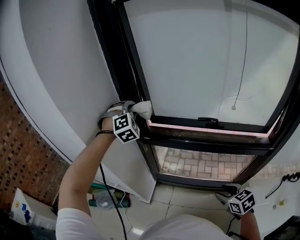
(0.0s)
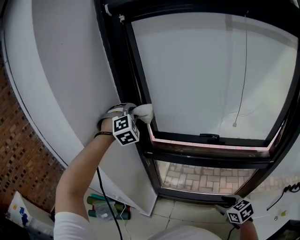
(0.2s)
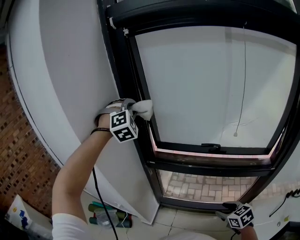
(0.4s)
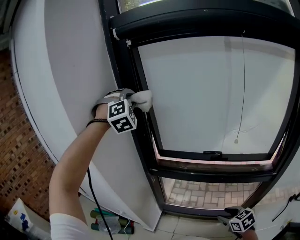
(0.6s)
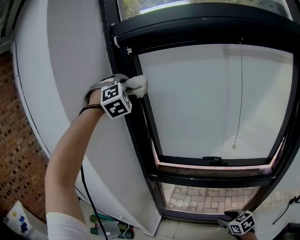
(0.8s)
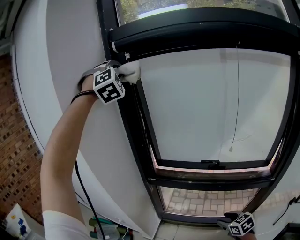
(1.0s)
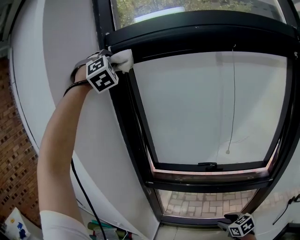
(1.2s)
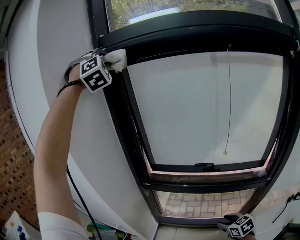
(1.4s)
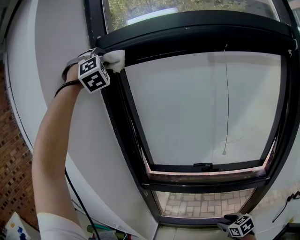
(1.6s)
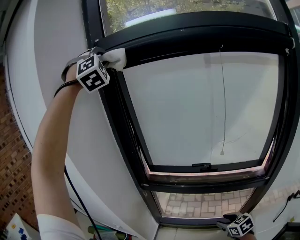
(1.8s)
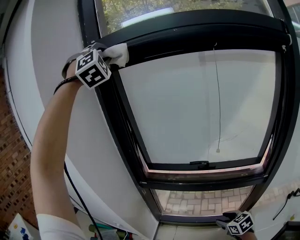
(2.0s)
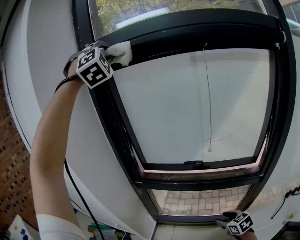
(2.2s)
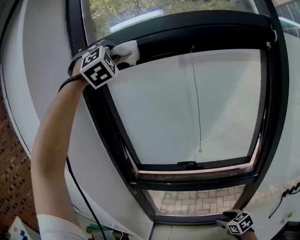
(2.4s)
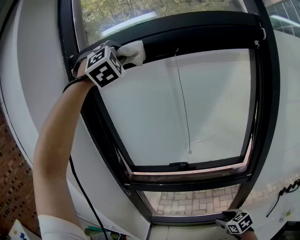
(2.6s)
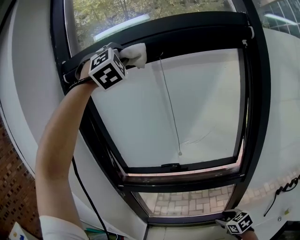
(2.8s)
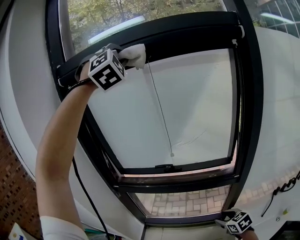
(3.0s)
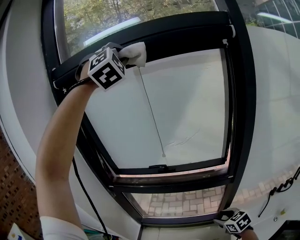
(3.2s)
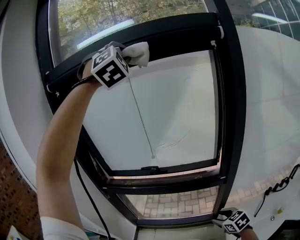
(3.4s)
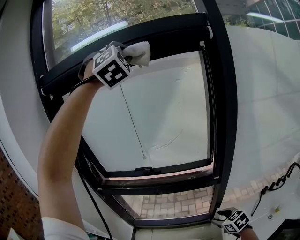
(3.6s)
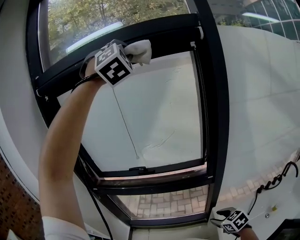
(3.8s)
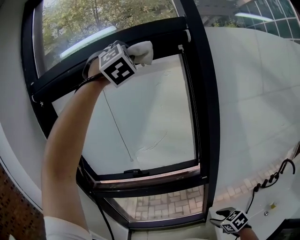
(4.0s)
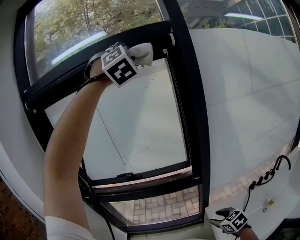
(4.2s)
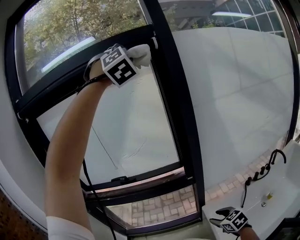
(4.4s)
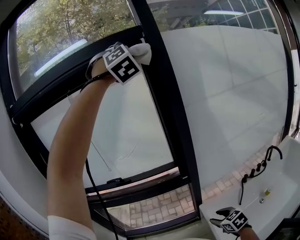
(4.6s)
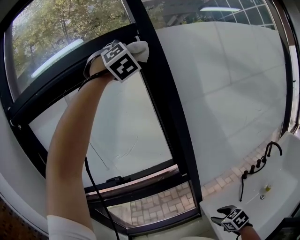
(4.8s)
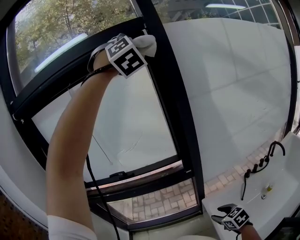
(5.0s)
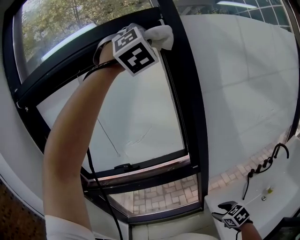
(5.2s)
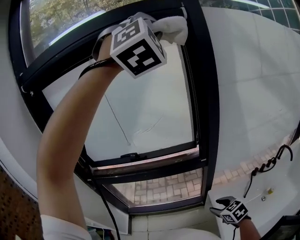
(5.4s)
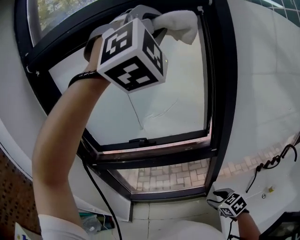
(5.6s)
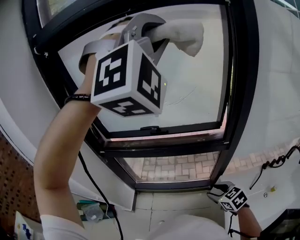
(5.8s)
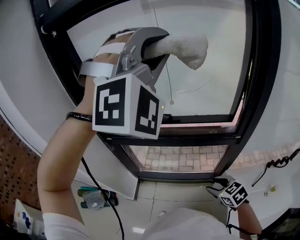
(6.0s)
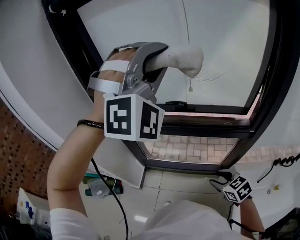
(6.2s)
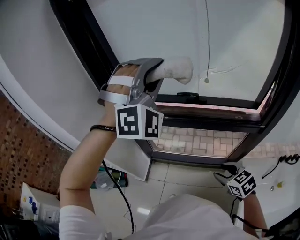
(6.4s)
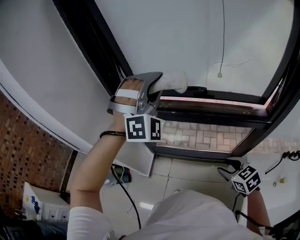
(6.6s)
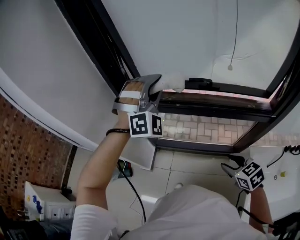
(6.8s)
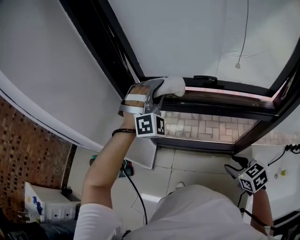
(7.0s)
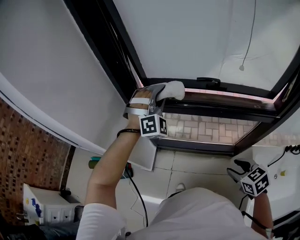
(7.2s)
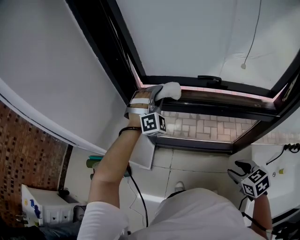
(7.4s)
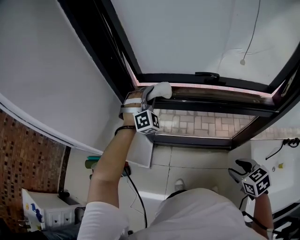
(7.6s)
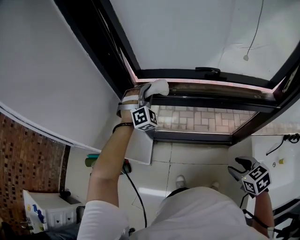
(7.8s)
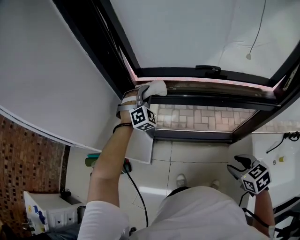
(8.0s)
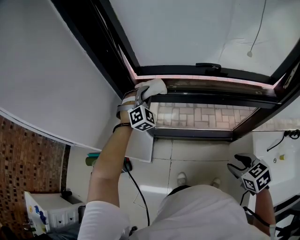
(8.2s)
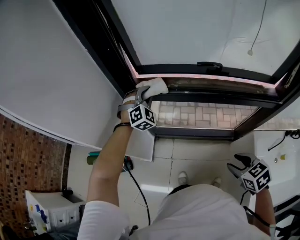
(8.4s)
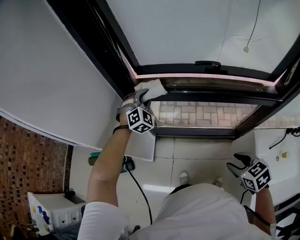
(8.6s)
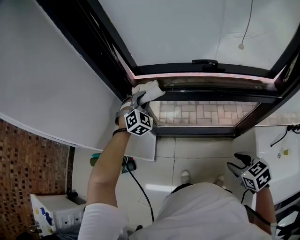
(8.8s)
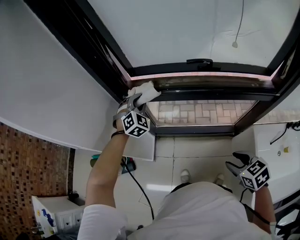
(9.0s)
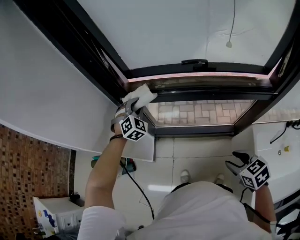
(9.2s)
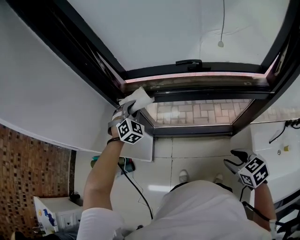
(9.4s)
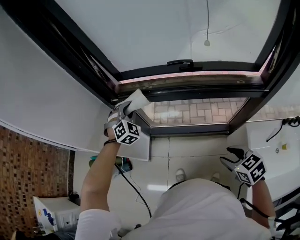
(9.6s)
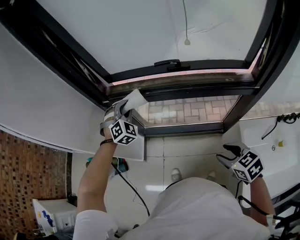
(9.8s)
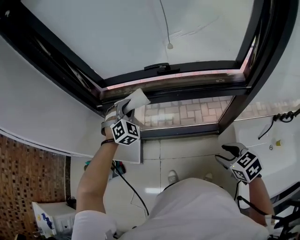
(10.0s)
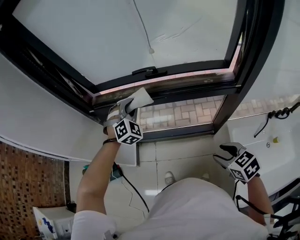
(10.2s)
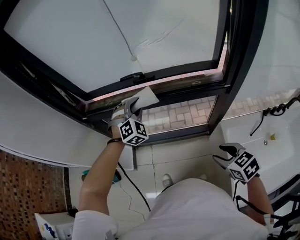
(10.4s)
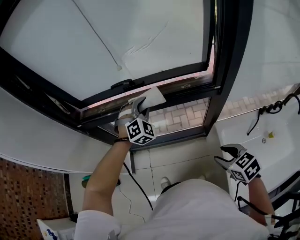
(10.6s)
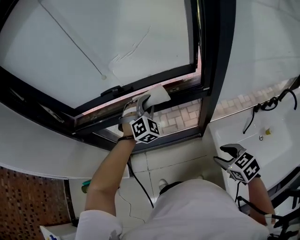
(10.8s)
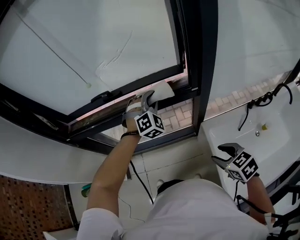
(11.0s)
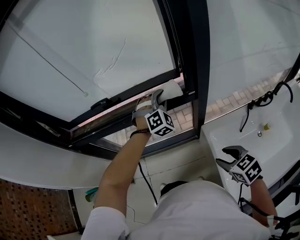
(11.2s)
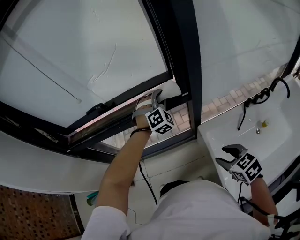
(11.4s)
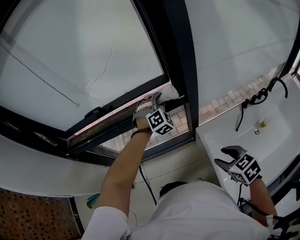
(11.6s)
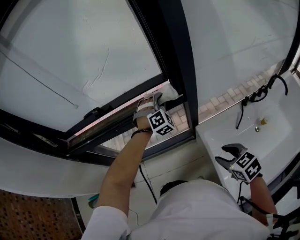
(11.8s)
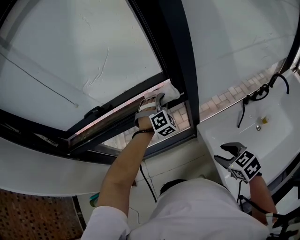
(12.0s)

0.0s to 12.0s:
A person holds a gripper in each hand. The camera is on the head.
0.0s to 1.6s: The left gripper shifts roughly 50 cm upward, and tilts its fingers some 30 degrees upward.
1.6s to 3.0s: The right gripper moves to the right and backward, roughly 20 cm, while the left gripper moves to the right and backward, some 35 cm, and changes its angle by some 20 degrees.
3.0s to 4.4s: The right gripper shifts about 20 cm to the right and backward. Meanwhile the left gripper travels to the right by roughly 30 cm.
4.4s to 6.0s: The left gripper heads to the left and downward, covering approximately 30 cm; the right gripper shifts roughly 20 cm to the left, and swivels some 20 degrees.
6.0s to 7.6s: The left gripper shifts approximately 60 cm downward, to the left and forward, and turns by roughly 30 degrees, while the right gripper travels to the left by about 10 cm.
7.6s to 9.0s: The left gripper travels downward by about 5 cm, and rotates about 20 degrees.
9.0s to 10.4s: The right gripper shifts roughly 20 cm to the right and backward. The left gripper moves to the right and backward, about 30 cm.
10.4s to 12.0s: The right gripper moves to the right, approximately 15 cm, while the left gripper heads to the right, covering about 35 cm.

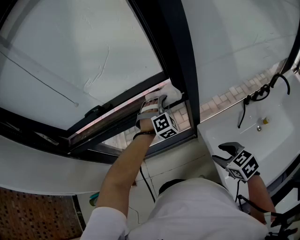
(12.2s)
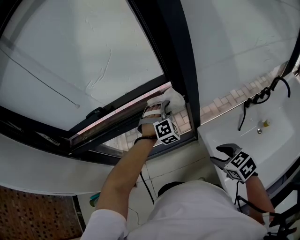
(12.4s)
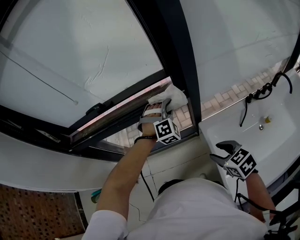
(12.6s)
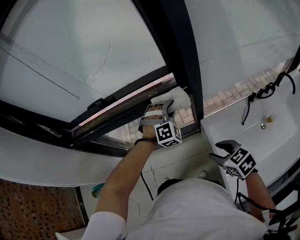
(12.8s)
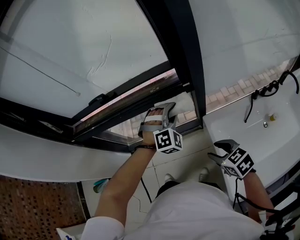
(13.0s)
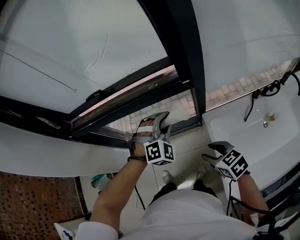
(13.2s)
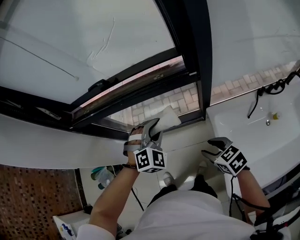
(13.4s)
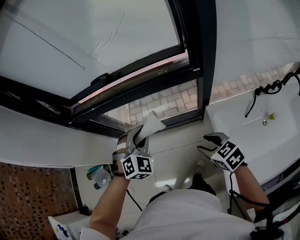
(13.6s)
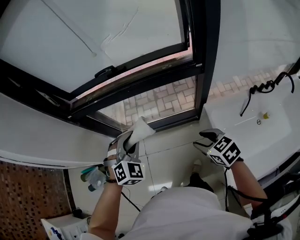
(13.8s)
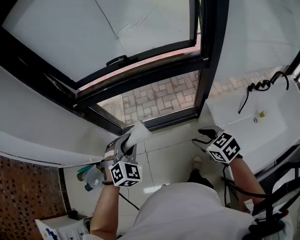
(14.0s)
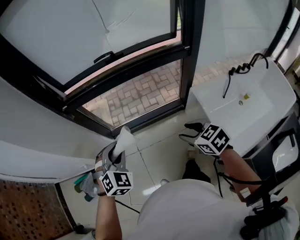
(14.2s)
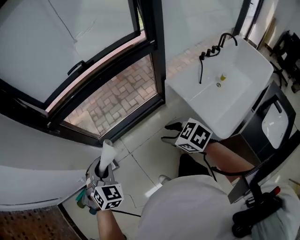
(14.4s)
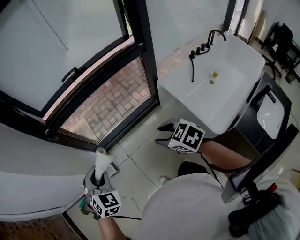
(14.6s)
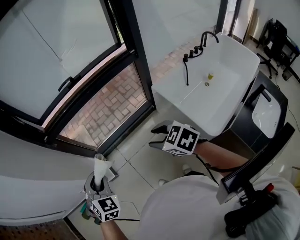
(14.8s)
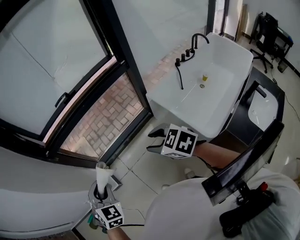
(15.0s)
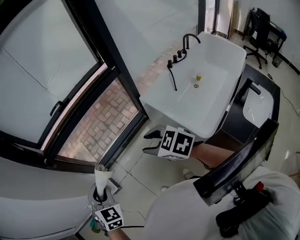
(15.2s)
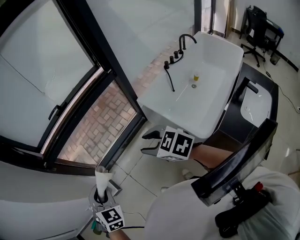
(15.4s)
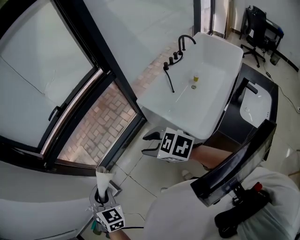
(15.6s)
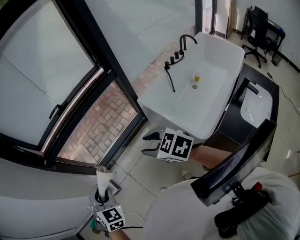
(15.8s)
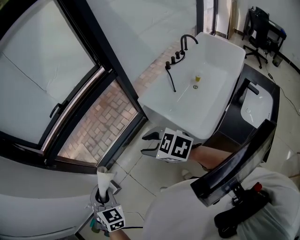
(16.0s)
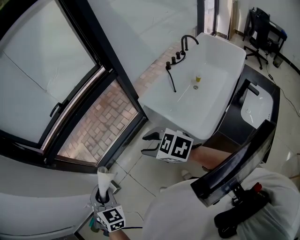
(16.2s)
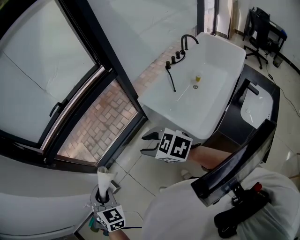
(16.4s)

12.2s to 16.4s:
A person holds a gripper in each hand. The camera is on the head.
12.2s to 13.6s: The left gripper is displaced to the left and backward by roughly 30 cm, and rotates about 20 degrees, while the right gripper is displaced to the left by approximately 10 cm.
13.6s to 15.0s: The left gripper goes about 35 cm to the left and backward. The right gripper shifts about 30 cm to the left, backward and upward.
15.0s to 16.4s: The left gripper shifts by about 5 cm. The right gripper shifts by some 5 cm.

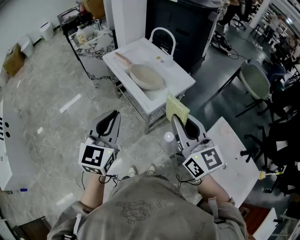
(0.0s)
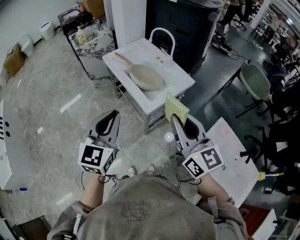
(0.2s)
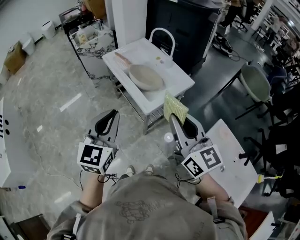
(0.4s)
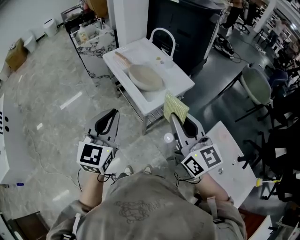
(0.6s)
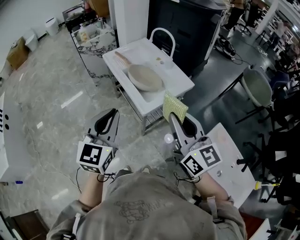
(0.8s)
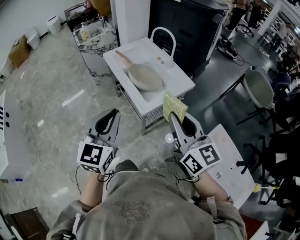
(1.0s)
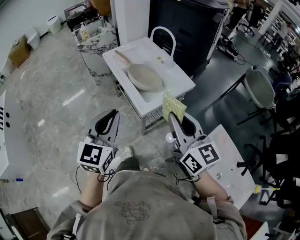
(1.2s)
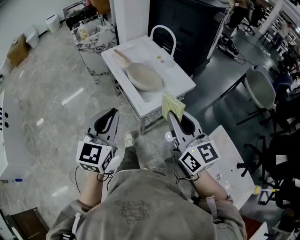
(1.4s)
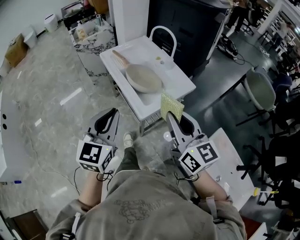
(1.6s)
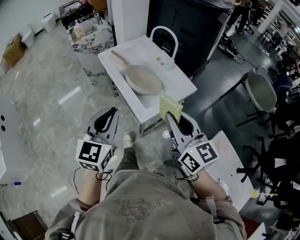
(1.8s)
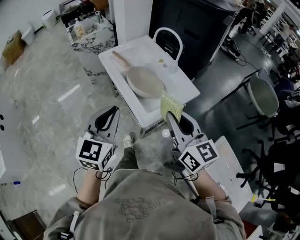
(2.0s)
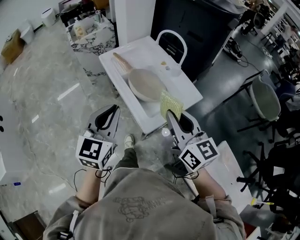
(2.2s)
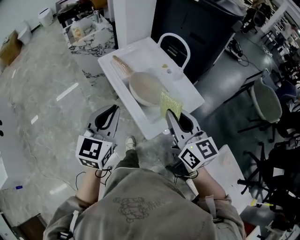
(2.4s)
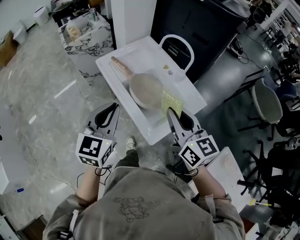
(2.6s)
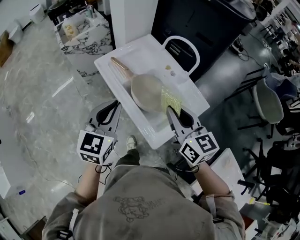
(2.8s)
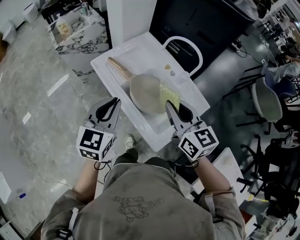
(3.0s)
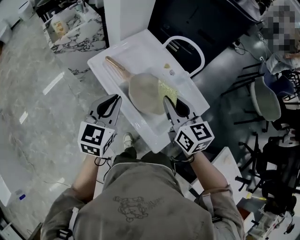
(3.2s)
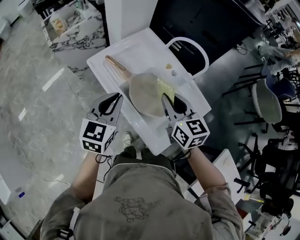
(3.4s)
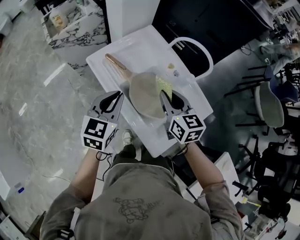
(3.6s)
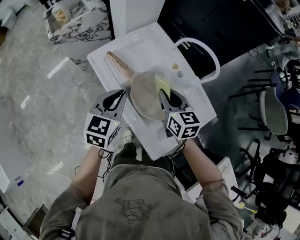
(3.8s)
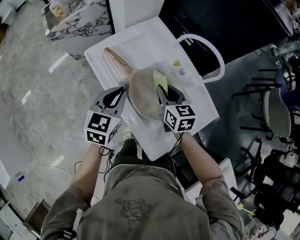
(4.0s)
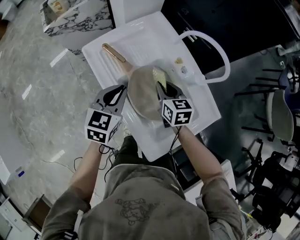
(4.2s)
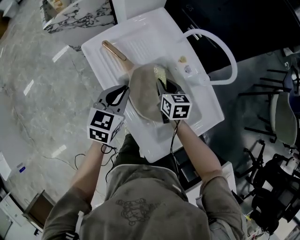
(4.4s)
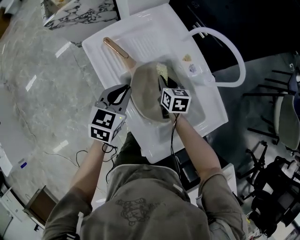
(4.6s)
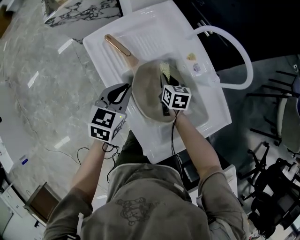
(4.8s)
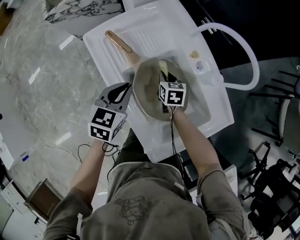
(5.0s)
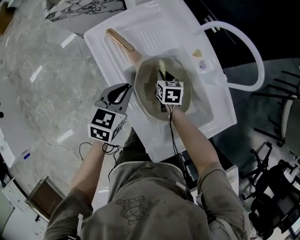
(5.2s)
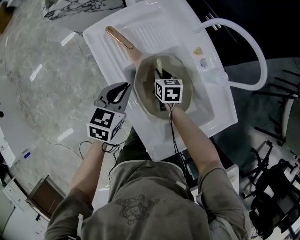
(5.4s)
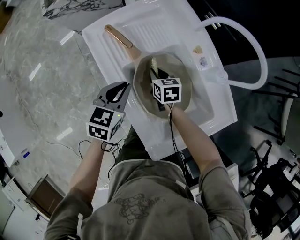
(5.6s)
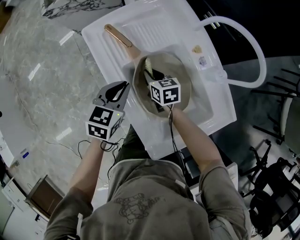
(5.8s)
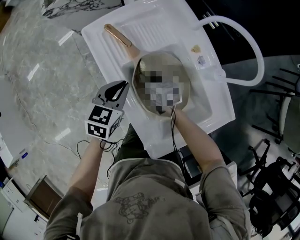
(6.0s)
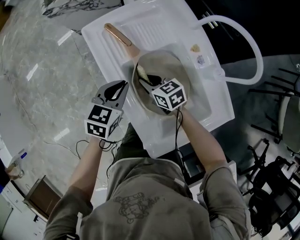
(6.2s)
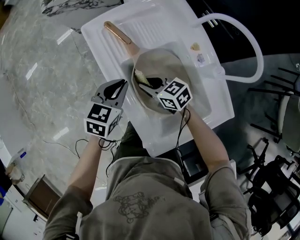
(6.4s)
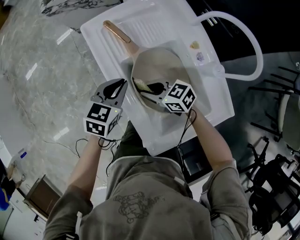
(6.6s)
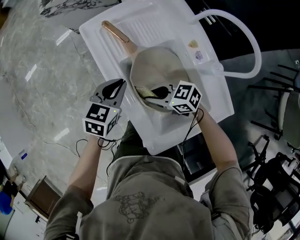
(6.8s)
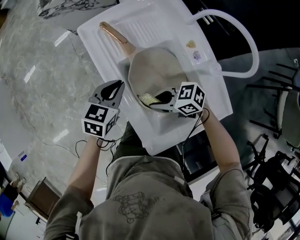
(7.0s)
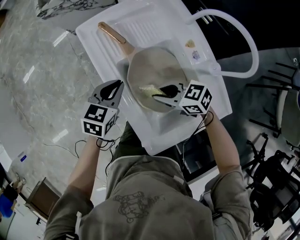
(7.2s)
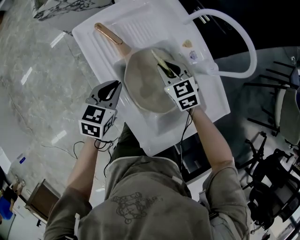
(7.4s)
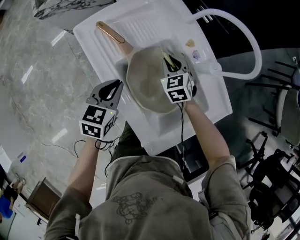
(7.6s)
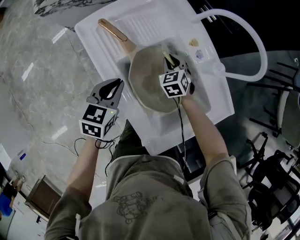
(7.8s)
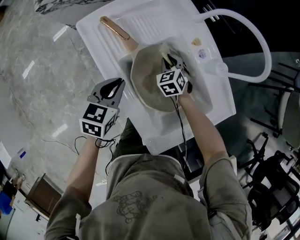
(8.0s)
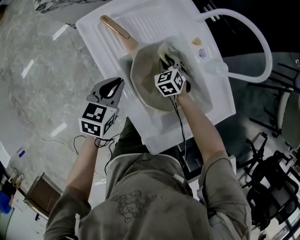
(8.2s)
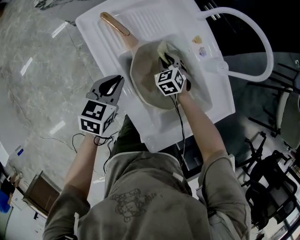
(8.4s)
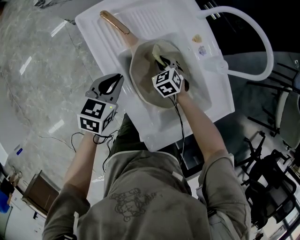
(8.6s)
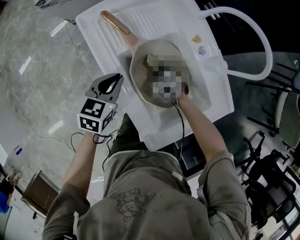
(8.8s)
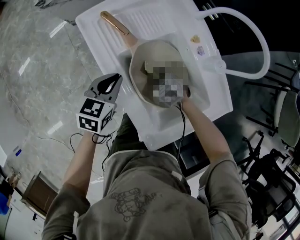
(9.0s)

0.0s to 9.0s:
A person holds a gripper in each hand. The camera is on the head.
0.0s to 1.6s: The two grippers go approximately 5 cm forward.
1.6s to 3.0s: Both grippers travel together forward, roughly 30 cm.
3.0s to 4.4s: The right gripper is displaced downward and forward by roughly 35 cm, and rotates some 20 degrees; the left gripper goes about 20 cm downward and forward.
4.4s to 6.0s: The left gripper heads downward, covering approximately 5 cm, while the right gripper moves to the left and downward, about 15 cm, and rotates about 20 degrees.
6.0s to 7.6s: The right gripper travels upward and back again, some 10 cm each way, and swivels roughly 40 degrees.
7.6s to 9.0s: The right gripper is displaced backward and downward by about 15 cm, and rotates roughly 30 degrees.
